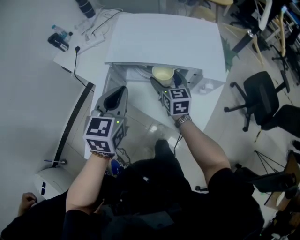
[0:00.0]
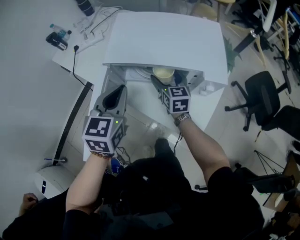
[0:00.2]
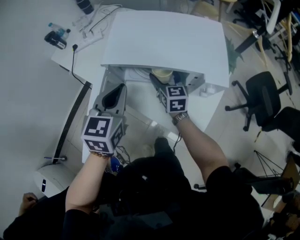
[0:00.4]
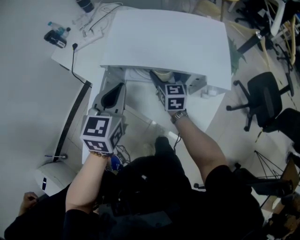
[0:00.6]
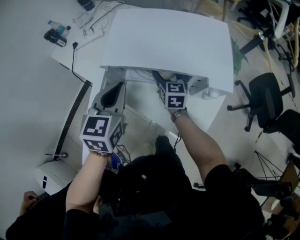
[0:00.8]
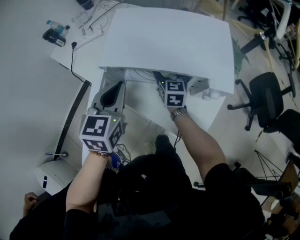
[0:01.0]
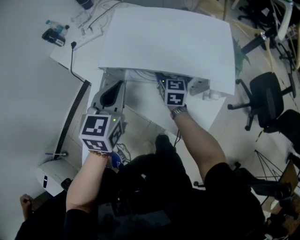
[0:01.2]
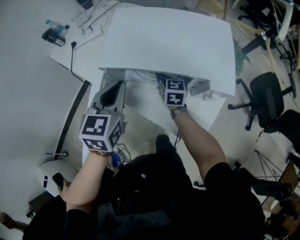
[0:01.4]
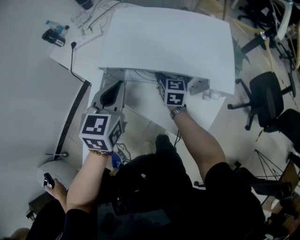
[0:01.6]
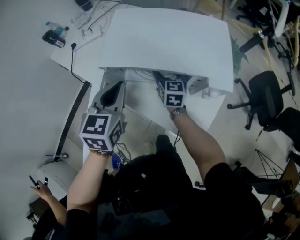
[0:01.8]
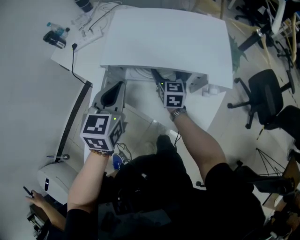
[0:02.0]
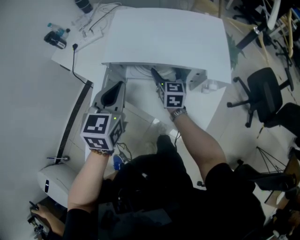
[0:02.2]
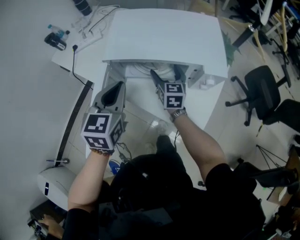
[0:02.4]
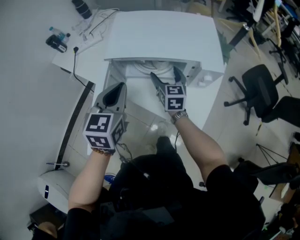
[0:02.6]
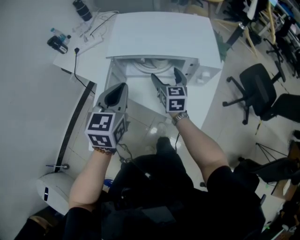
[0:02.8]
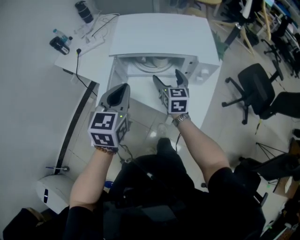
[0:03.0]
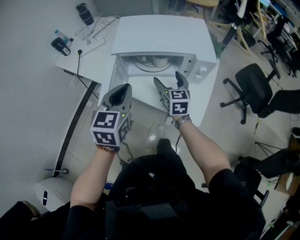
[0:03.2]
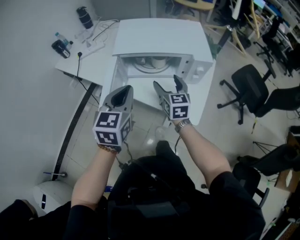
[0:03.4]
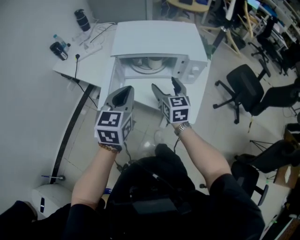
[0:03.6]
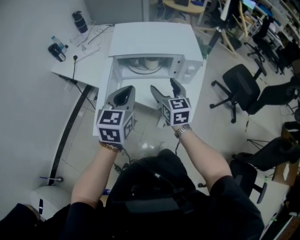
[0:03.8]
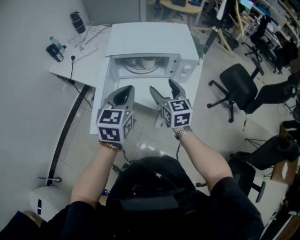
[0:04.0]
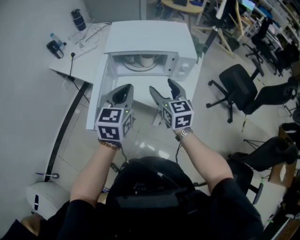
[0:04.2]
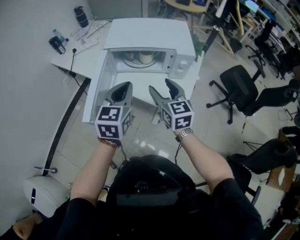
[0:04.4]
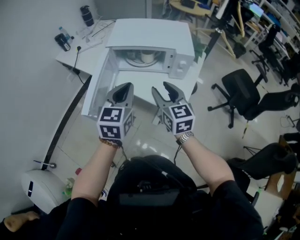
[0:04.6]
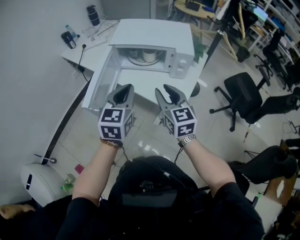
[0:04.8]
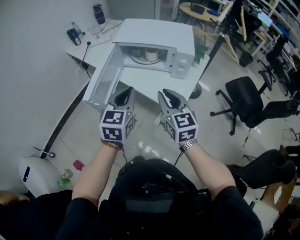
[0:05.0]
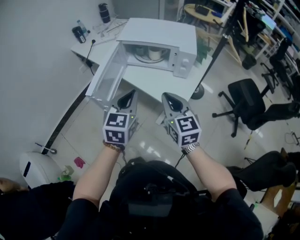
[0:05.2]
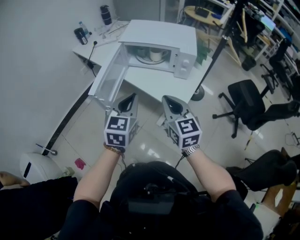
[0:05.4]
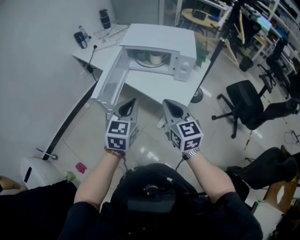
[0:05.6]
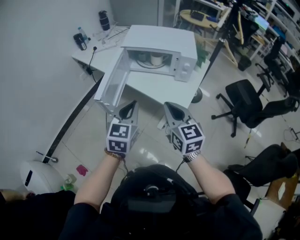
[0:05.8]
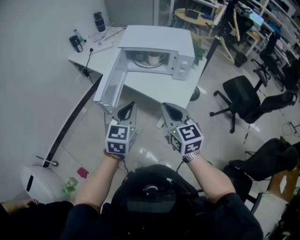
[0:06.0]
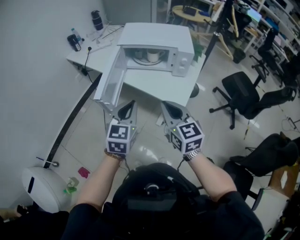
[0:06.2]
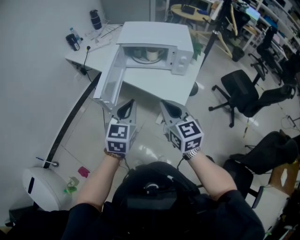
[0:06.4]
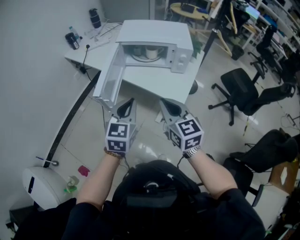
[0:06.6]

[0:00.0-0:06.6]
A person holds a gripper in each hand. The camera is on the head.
0:00.0 to 0:01.6: The two grippers go approximately 5 cm forward.
0:01.6 to 0:03.2: The left gripper moves backward, some 10 cm. Meanwhile the right gripper travels backward and upward by roughly 15 cm.
0:03.2 to 0:05.0: The left gripper goes roughly 15 cm backward and to the right. Meanwhile the right gripper is displaced backward and upward by some 25 cm, and closes its fingers.
0:05.0 to 0:06.6: The right gripper moves backward and to the left, about 10 cm; the left gripper shifts roughly 5 cm backward.

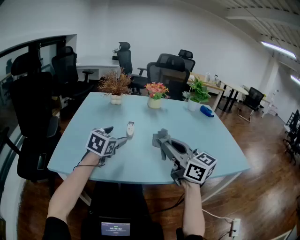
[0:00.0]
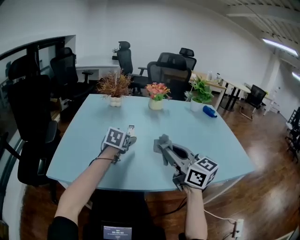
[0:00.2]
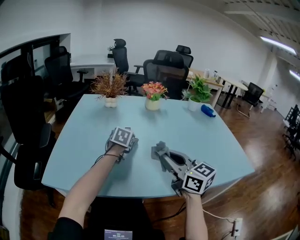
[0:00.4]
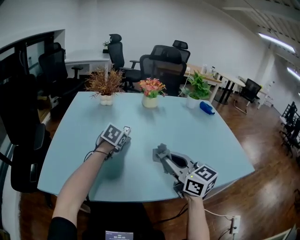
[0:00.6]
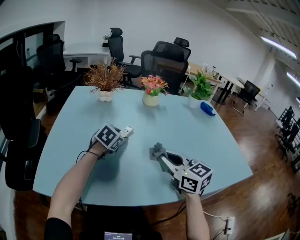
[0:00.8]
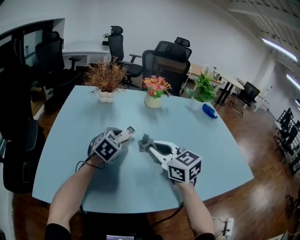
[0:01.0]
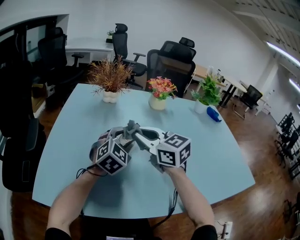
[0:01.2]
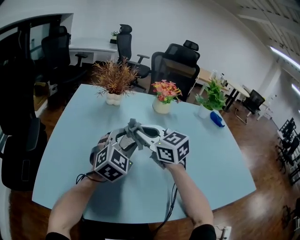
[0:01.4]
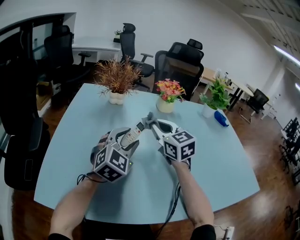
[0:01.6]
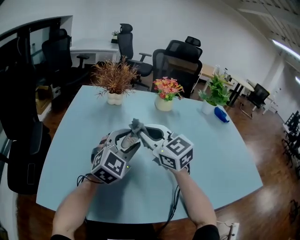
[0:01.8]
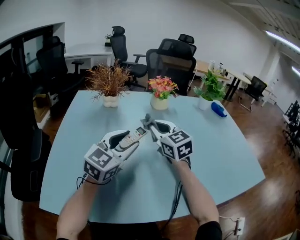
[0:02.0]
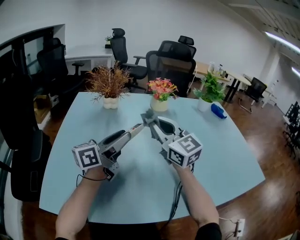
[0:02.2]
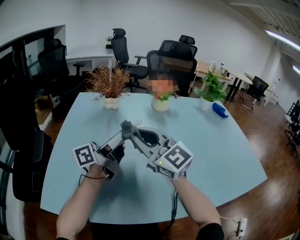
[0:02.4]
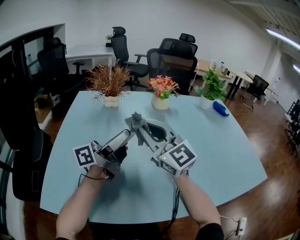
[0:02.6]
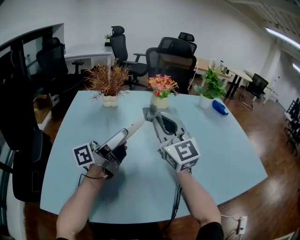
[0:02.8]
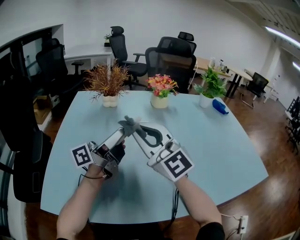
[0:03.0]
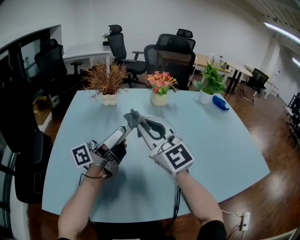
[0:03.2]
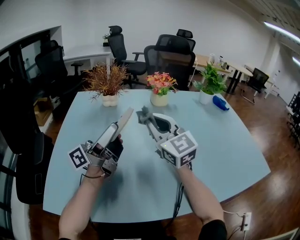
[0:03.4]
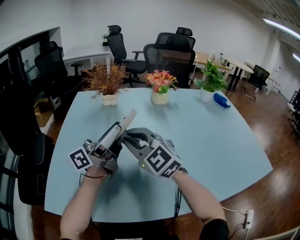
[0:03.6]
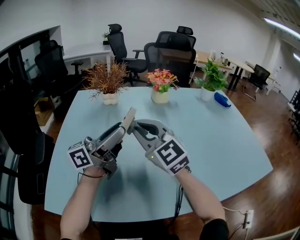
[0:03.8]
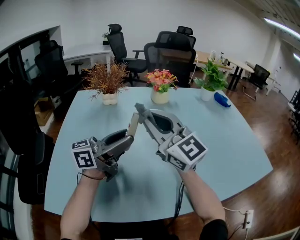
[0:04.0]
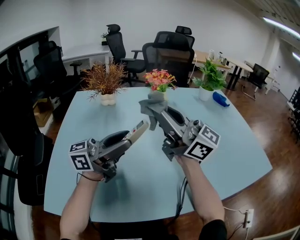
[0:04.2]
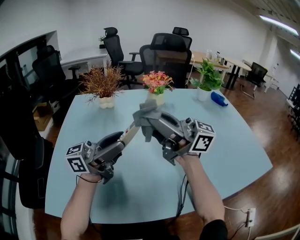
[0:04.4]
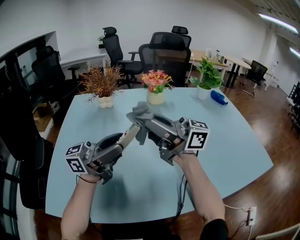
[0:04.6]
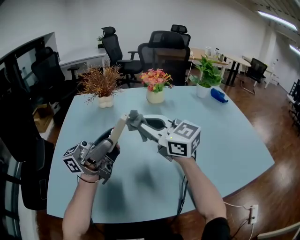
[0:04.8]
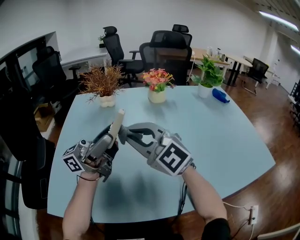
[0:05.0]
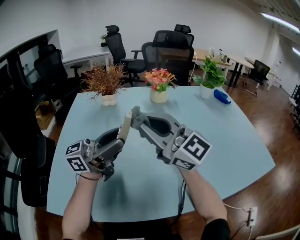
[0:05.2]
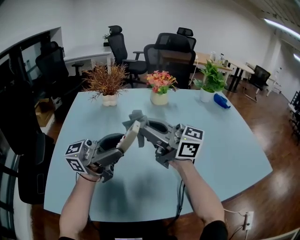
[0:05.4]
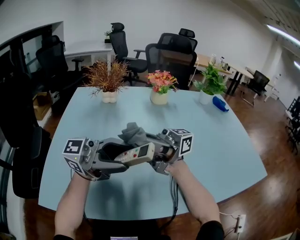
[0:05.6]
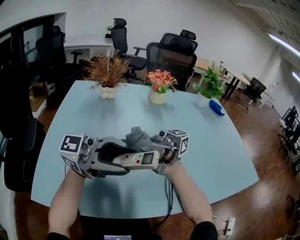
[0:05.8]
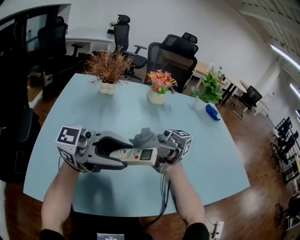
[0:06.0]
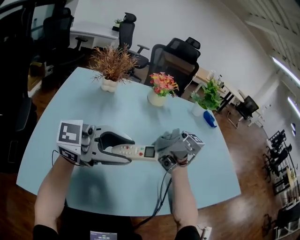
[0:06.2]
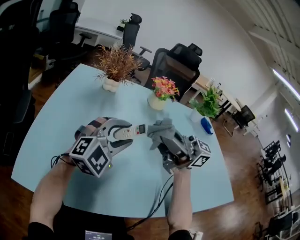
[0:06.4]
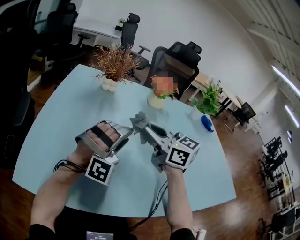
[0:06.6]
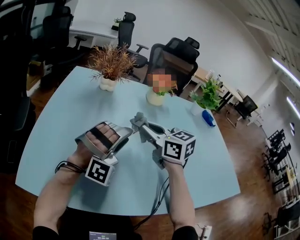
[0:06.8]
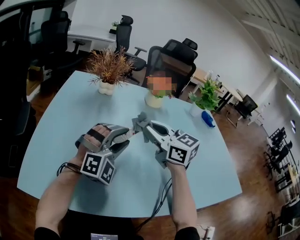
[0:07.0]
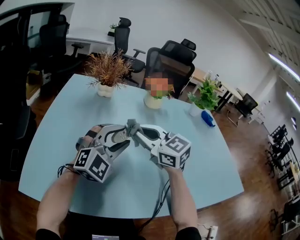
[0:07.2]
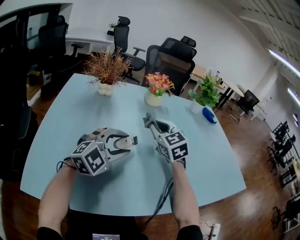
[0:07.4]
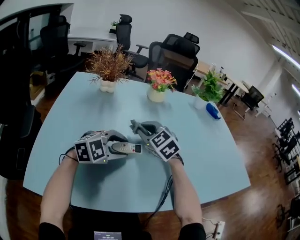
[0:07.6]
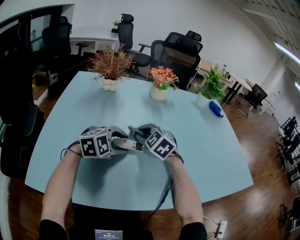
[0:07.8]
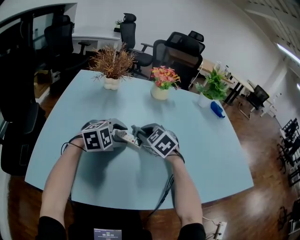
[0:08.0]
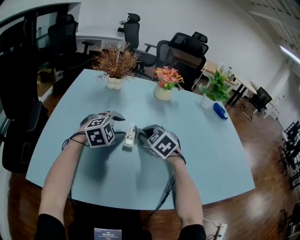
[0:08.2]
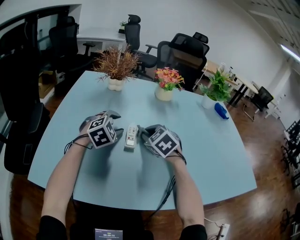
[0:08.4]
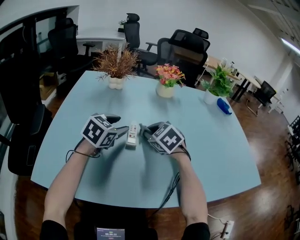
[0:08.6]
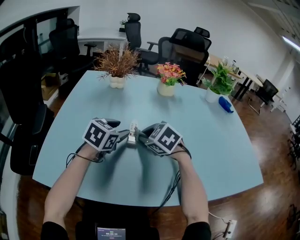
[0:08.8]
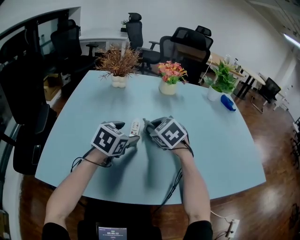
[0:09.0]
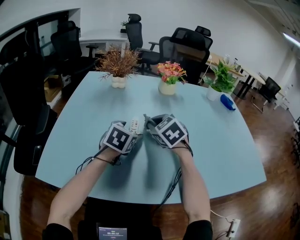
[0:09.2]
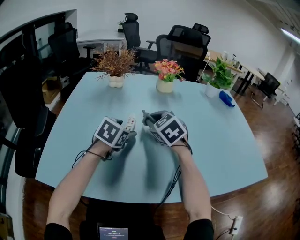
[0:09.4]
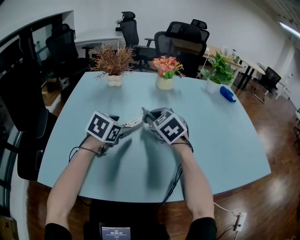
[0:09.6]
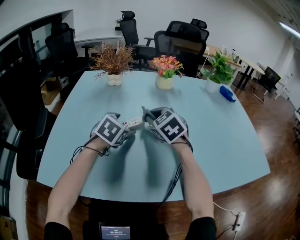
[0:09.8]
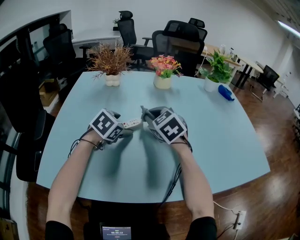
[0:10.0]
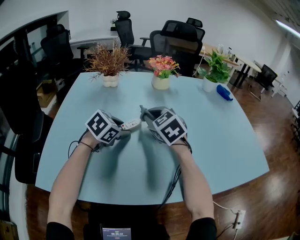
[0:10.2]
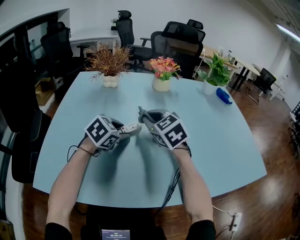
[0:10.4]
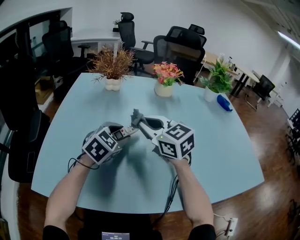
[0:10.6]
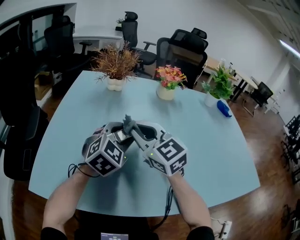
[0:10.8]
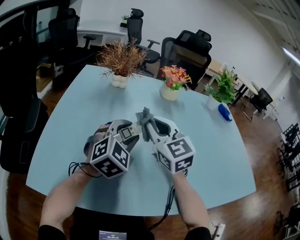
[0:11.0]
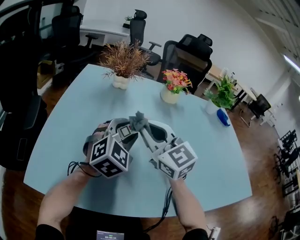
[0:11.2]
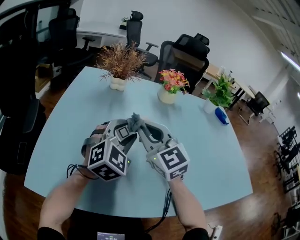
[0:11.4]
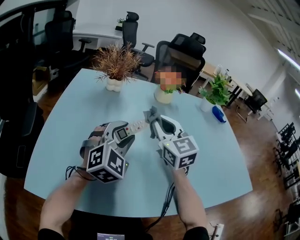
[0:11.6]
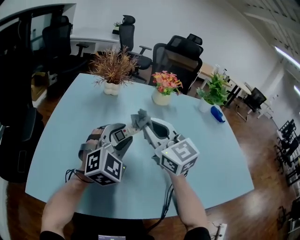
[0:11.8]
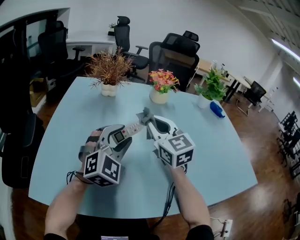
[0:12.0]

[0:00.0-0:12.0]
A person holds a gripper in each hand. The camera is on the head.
0:00.0 to 0:01.6: The left gripper heads forward, covering some 20 cm, rotates roughly 20 degrees, and closes up; the right gripper shifts some 40 cm forward, and turns by roughly 30 degrees.
0:01.6 to 0:03.0: The left gripper shifts about 5 cm upward, and rotates around the line of its fingers by roughly 80 degrees, counterclockwise from behind. Meanwhile the right gripper goes forward and backward, some 10 cm each way, reversing 4 times, and changes its angle by approximately 30 degrees.
0:03.0 to 0:04.4: The right gripper shifts by approximately 10 cm, and rotates around the line of its fingers by some 50 degrees, clockwise from behind. Meanwhile the left gripper moves approximately 5 cm, and turns by some 30 degrees.
0:04.4 to 0:06.0: The right gripper moves up and down over some 10 cm, changing direction 2 times, and swivels some 50 degrees. Meanwhile the left gripper changes place by roughly 10 cm, and rotates roughly 30 degrees.
0:06.0 to 0:07.6: The grippers both shift downward by some 15 cm. The right gripper tips its fingers downward by roughly 60 degrees. Meanwhile the left gripper tilts its fingers about 50 degrees downward.
0:07.6 to 0:09.0: The left gripper rotates around the line of its fingers by approximately 50 degrees, counterclockwise from behind, and opens up.
0:09.0 to 0:10.4: The right gripper is displaced upward by roughly 5 cm. Meanwhile the left gripper swivels some 20 degrees, and closes its fingers.
0:10.4 to 0:12.0: The grippers both shift upward by roughly 10 cm. The right gripper travels to the left and back again, approximately 10 cm each way, and rotates roughly 20 degrees; the left gripper tilts its fingers some 30 degrees upward.

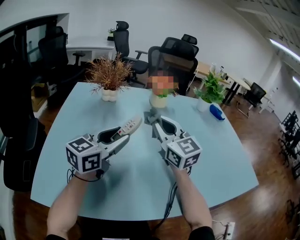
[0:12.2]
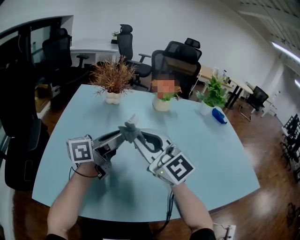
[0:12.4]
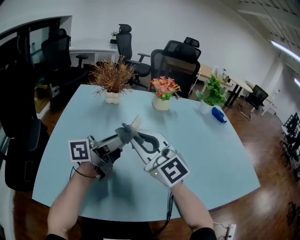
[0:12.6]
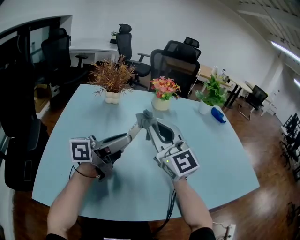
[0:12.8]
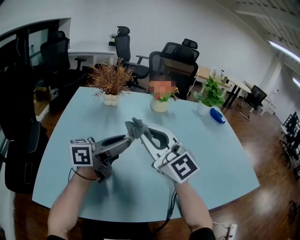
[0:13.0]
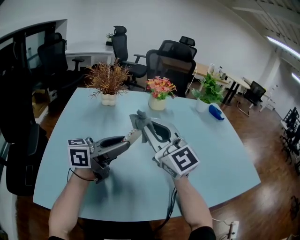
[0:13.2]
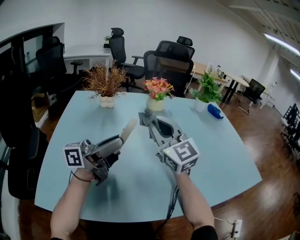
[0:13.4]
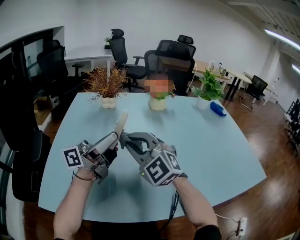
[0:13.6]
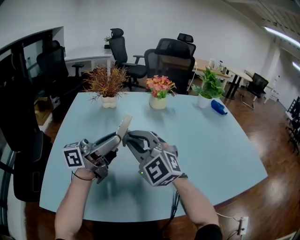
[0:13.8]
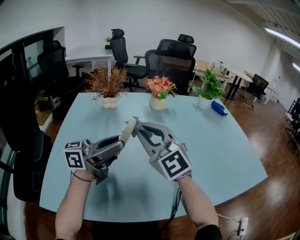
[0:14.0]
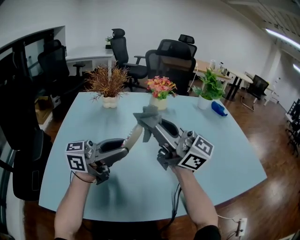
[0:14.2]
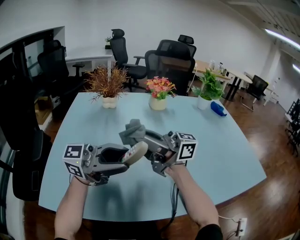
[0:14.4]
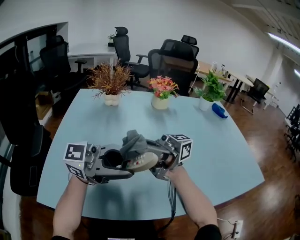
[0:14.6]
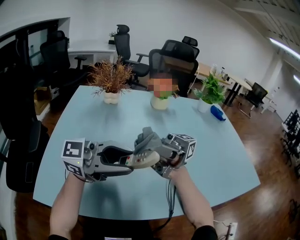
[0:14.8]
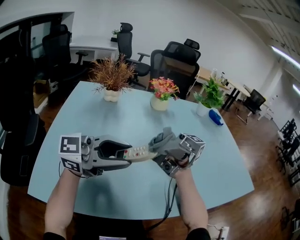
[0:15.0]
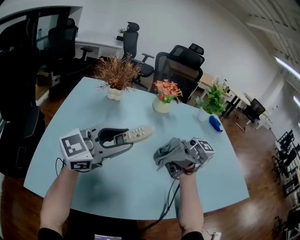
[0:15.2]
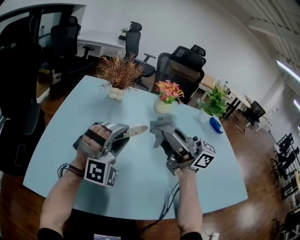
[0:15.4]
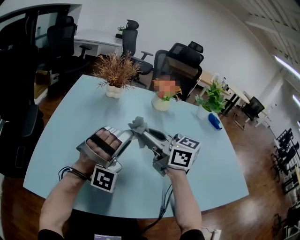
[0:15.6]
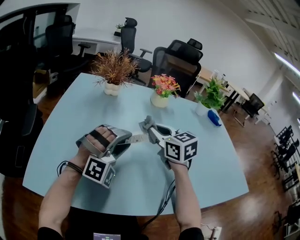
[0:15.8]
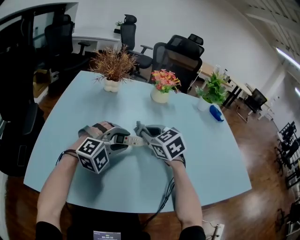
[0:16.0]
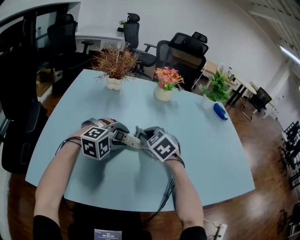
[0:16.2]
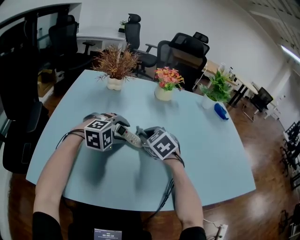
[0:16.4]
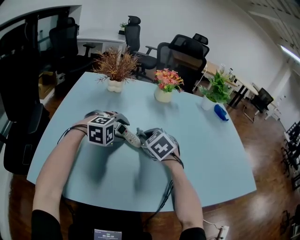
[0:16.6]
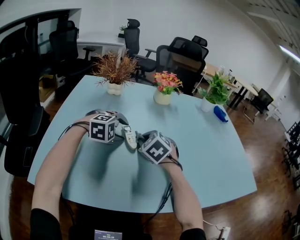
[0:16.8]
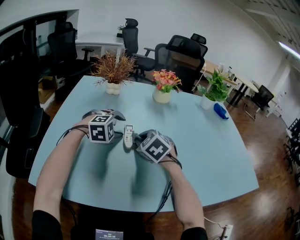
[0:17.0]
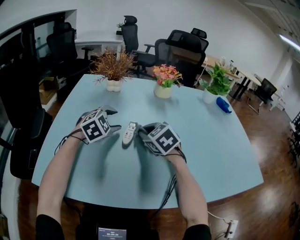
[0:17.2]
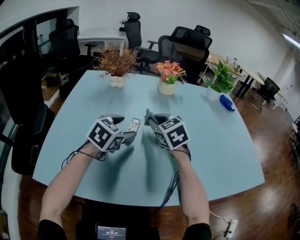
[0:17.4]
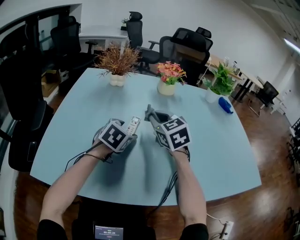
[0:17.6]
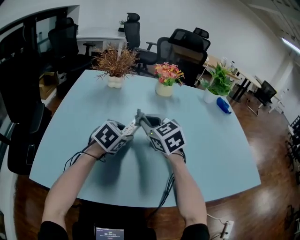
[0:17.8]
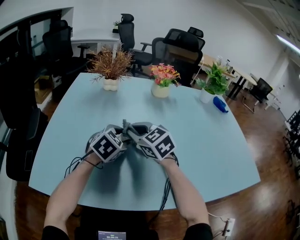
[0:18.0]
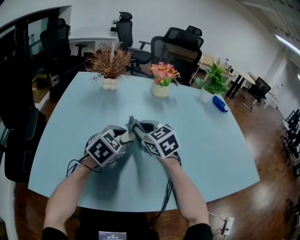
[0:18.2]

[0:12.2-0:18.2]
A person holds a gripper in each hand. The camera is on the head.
0:12.2 to 0:13.8: The right gripper moves forward and backward over roughly 10 cm, changing direction 2 times, and changes its angle by roughly 40 degrees. The left gripper changes place by some 5 cm, and swivels roughly 40 degrees.
0:13.8 to 0:15.2: The left gripper rotates around the line of its fingers by some 50 degrees, clockwise from behind. The right gripper changes place by about 15 cm, and tilts its fingers roughly 30 degrees upward.
0:15.2 to 0:16.6: The two grippers go about 20 cm downward. The left gripper tilts its fingers some 50 degrees downward, while the right gripper tips its fingers downward by about 70 degrees.
0:16.6 to 0:18.2: The right gripper swivels roughly 20 degrees. Meanwhile the left gripper twists about 40 degrees counterclockwise, seen from behind.
